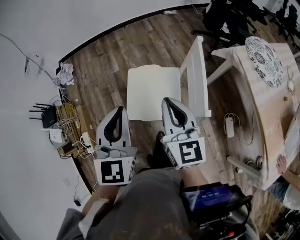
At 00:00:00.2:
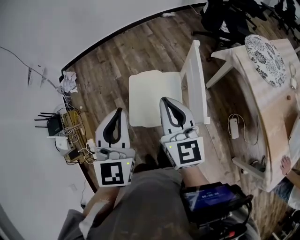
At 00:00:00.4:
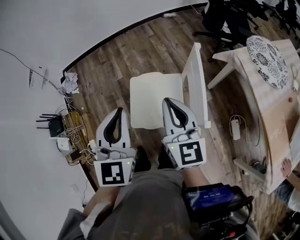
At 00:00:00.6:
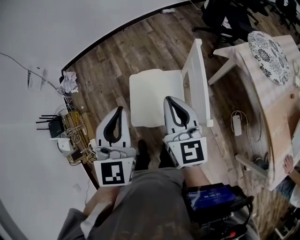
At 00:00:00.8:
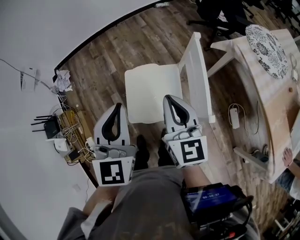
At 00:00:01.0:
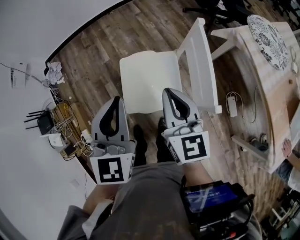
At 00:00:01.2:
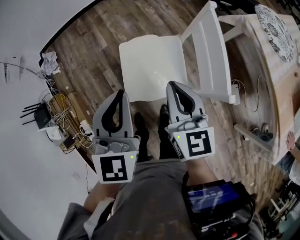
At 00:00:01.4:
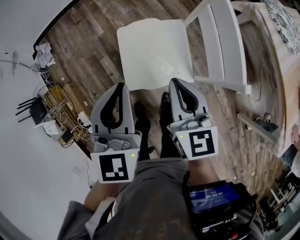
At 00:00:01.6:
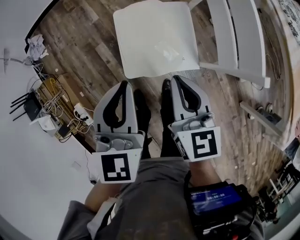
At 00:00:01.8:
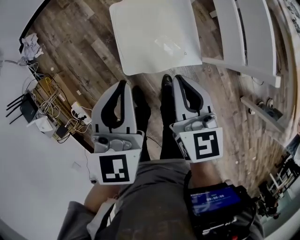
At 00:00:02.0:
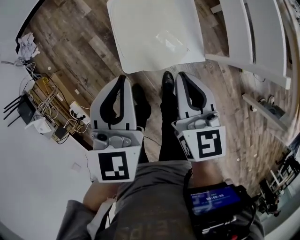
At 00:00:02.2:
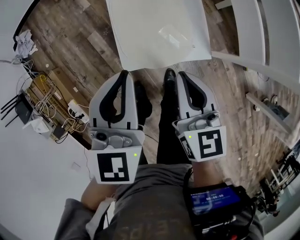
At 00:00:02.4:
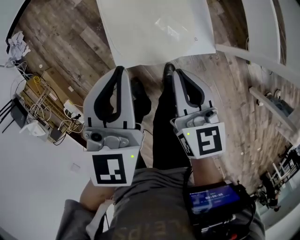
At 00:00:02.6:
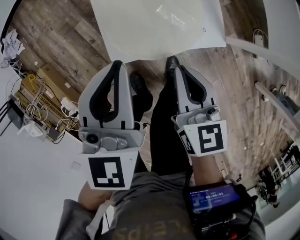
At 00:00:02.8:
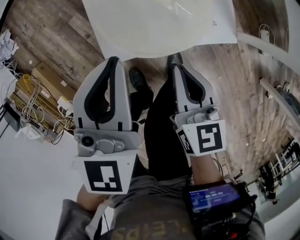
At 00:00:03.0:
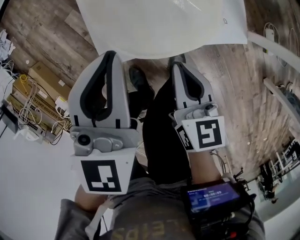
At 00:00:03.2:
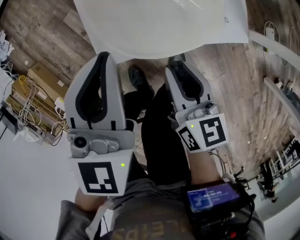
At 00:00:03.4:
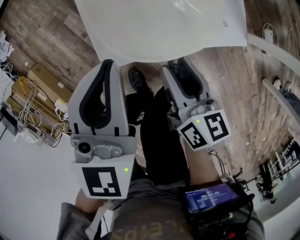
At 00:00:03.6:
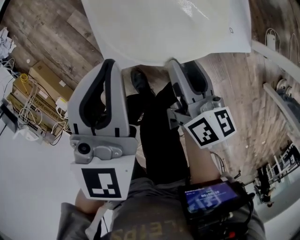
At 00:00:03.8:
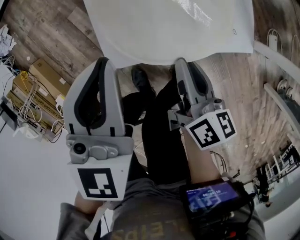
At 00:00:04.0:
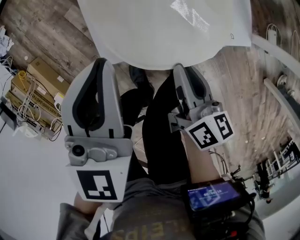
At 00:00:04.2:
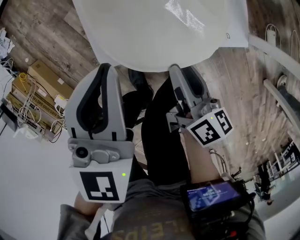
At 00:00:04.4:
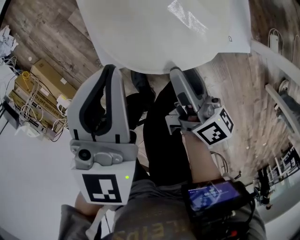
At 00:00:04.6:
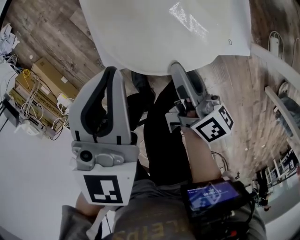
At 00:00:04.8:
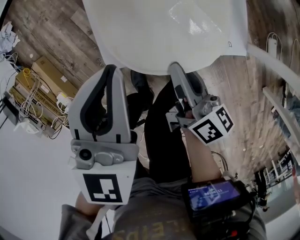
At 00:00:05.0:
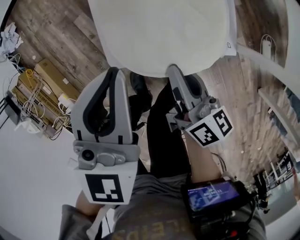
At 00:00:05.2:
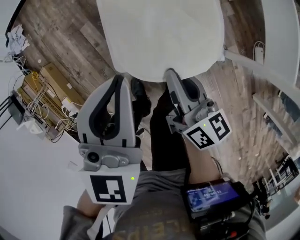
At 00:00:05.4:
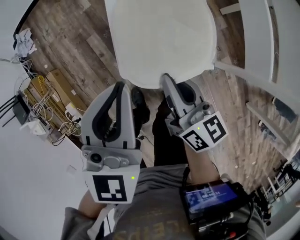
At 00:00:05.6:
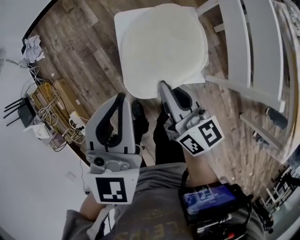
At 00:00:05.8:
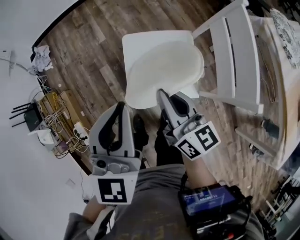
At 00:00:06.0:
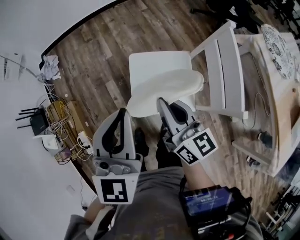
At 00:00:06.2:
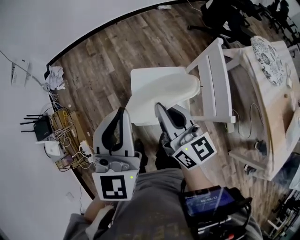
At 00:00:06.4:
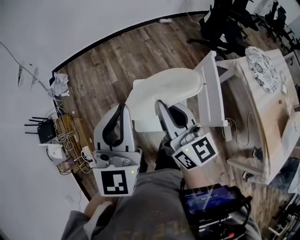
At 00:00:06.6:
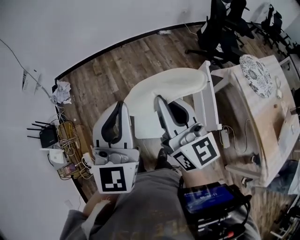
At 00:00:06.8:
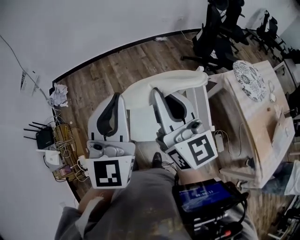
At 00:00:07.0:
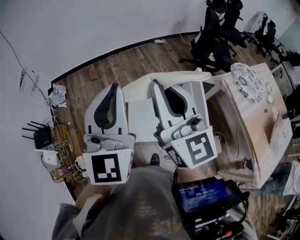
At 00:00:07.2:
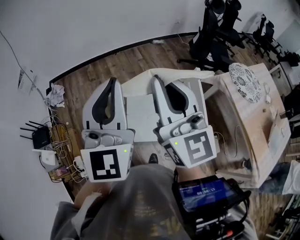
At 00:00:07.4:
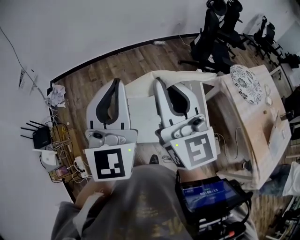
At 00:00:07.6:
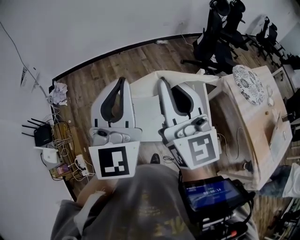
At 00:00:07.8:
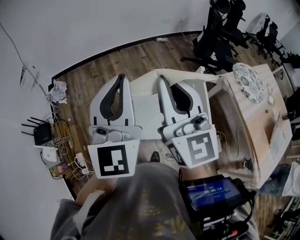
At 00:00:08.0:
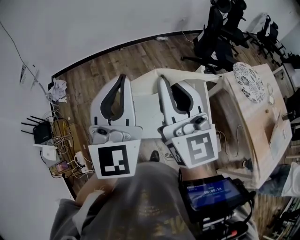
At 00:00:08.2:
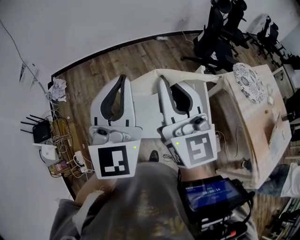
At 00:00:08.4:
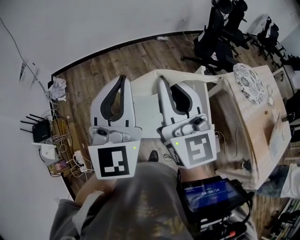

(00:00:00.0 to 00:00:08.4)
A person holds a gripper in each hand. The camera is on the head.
00:00:00.0 - 00:00:01.4: Both grippers move downward, about 10 cm.
00:00:01.4 - 00:00:02.8: The grippers both shift downward by roughly 30 cm.
00:00:02.8 - 00:00:04.2: The right gripper travels downward by some 5 cm, changes its angle by some 40 degrees, and opens its fingers.
00:00:04.2 - 00:00:05.6: The left gripper moves upward, about 20 cm. The right gripper shifts approximately 25 cm upward and forward, swivels about 30 degrees, and closes its fingers.
00:00:05.6 - 00:00:07.0: Both grippers move upward, some 40 cm. The right gripper changes its angle by roughly 40 degrees; the left gripper rotates about 30 degrees.
00:00:07.0 - 00:00:08.4: The grippers stay close to where they were, moving slightly.

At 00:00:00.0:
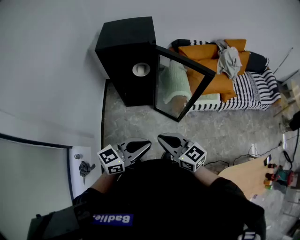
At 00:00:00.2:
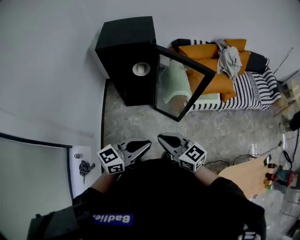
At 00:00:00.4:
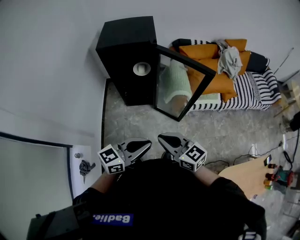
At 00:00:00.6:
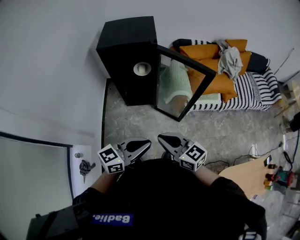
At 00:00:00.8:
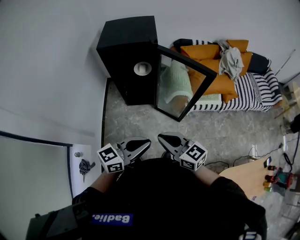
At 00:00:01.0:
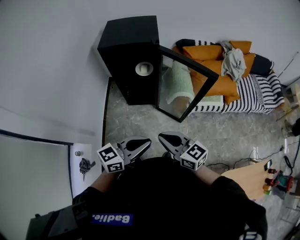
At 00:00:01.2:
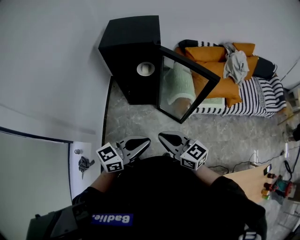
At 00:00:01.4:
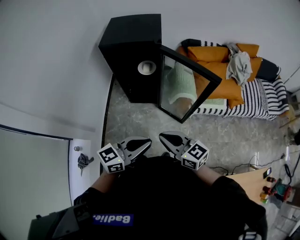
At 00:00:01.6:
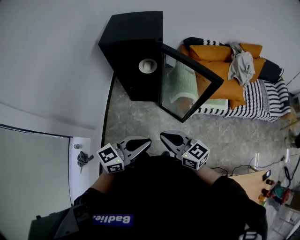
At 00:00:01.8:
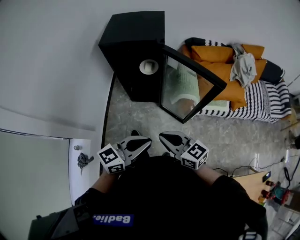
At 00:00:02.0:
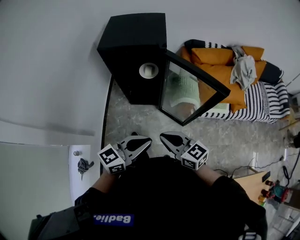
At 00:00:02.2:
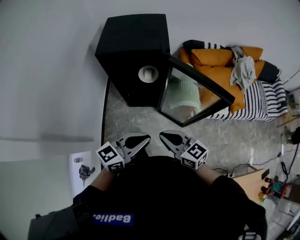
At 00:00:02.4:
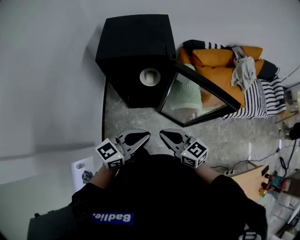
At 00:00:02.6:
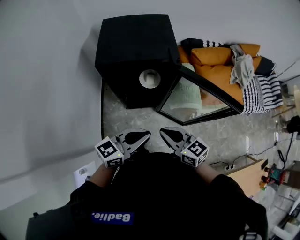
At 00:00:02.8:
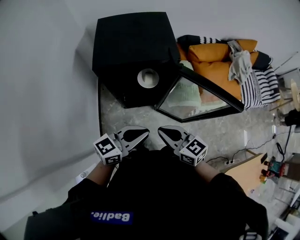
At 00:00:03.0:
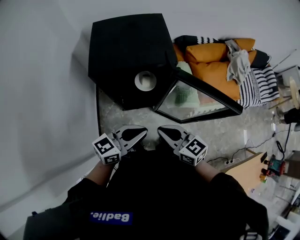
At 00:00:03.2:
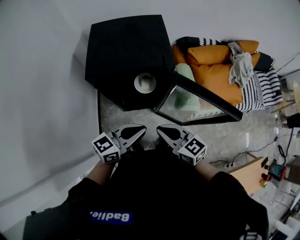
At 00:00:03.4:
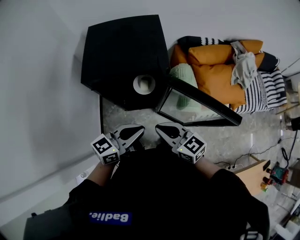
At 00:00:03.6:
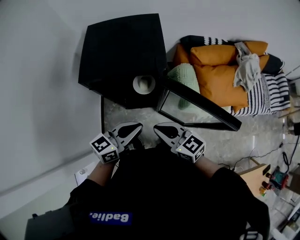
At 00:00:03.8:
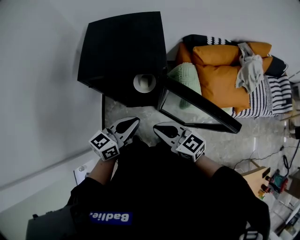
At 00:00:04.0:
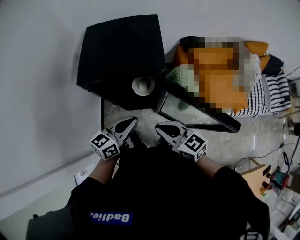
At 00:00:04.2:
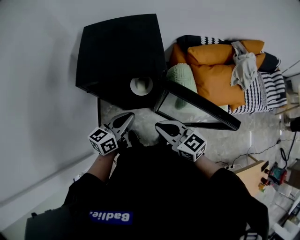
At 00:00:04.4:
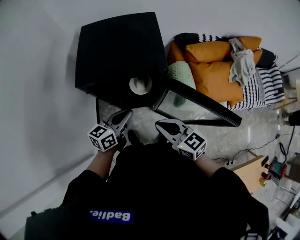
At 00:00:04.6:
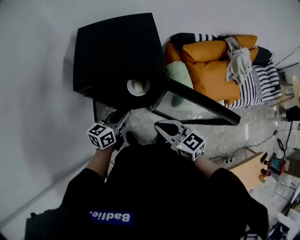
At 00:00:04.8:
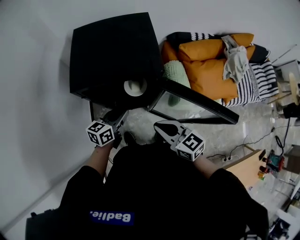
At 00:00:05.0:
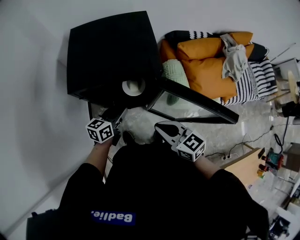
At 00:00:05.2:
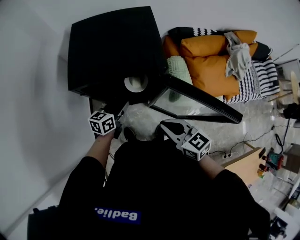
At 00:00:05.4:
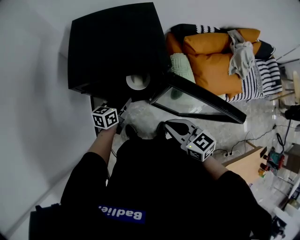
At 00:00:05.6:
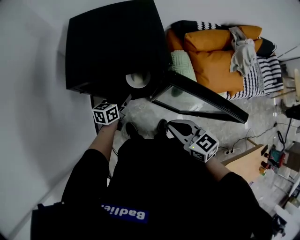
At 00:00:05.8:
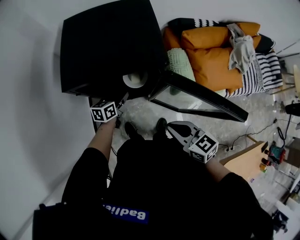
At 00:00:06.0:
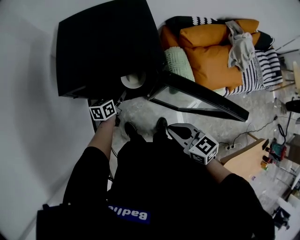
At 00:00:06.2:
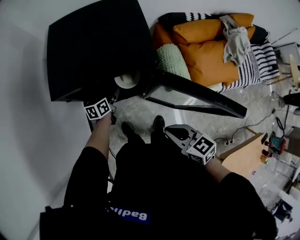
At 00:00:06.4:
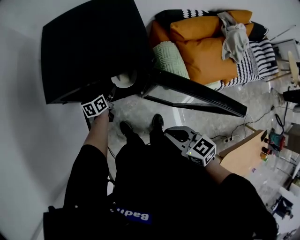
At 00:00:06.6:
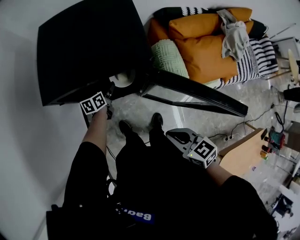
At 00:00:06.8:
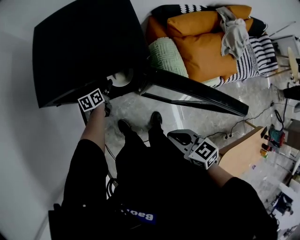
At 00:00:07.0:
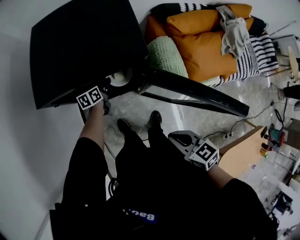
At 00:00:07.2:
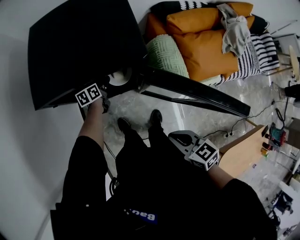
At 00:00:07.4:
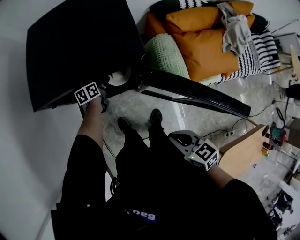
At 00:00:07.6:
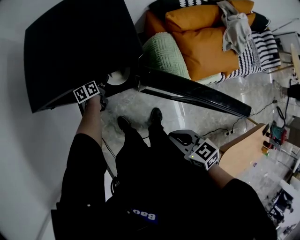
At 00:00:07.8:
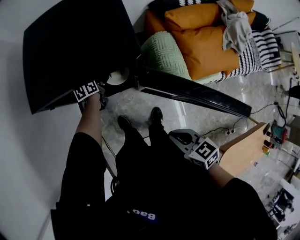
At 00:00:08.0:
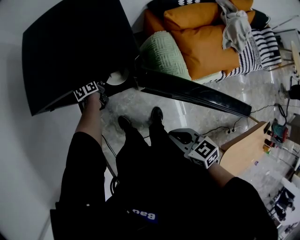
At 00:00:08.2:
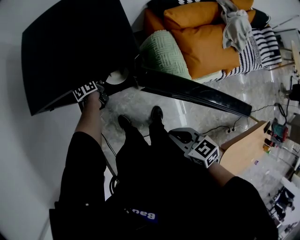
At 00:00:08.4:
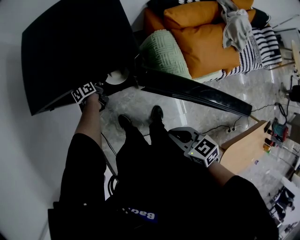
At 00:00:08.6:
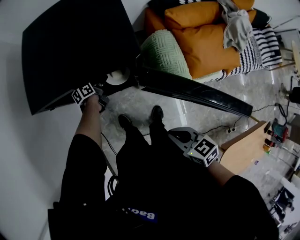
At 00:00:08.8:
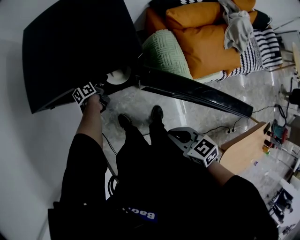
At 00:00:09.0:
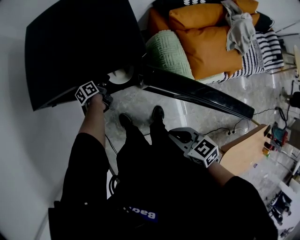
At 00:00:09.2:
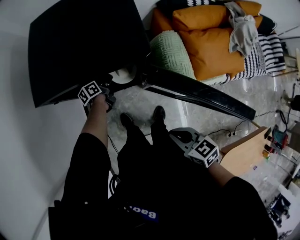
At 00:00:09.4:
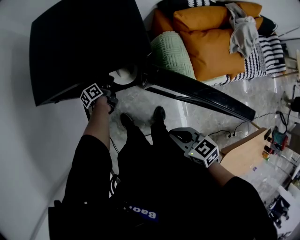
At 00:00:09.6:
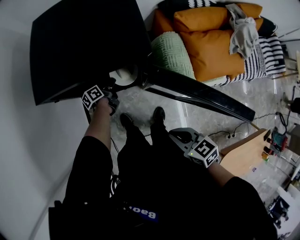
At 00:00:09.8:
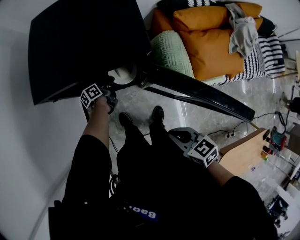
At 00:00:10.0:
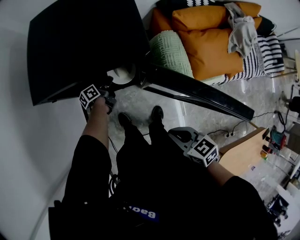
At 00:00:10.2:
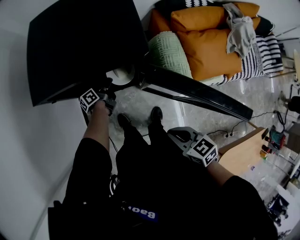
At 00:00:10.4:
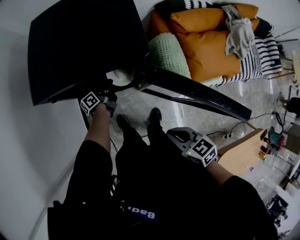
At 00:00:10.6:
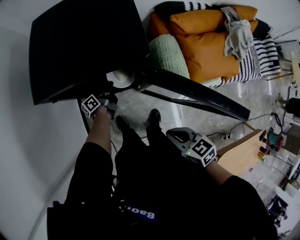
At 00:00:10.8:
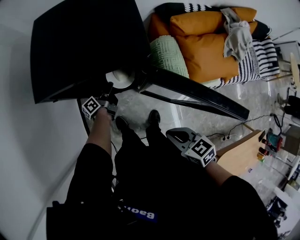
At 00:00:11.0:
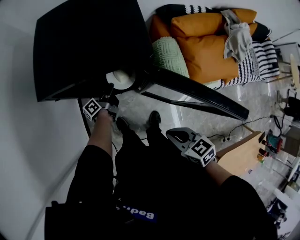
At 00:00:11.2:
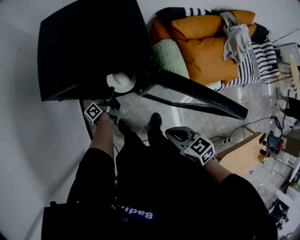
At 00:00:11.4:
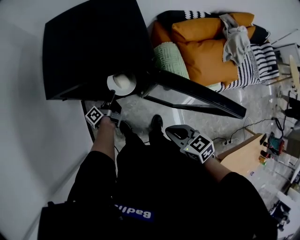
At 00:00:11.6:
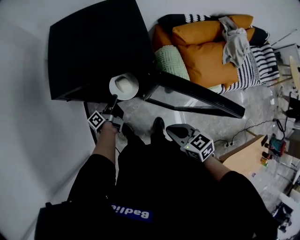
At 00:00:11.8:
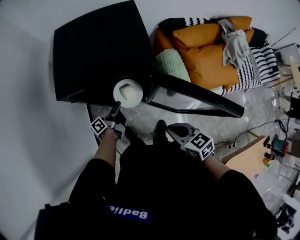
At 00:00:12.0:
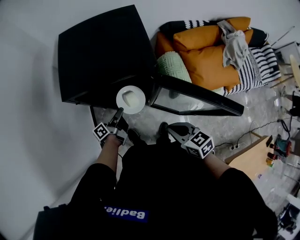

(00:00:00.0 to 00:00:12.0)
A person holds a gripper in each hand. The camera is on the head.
00:00:00.0 - 00:00:01.6: The right gripper changes place by approximately 5 cm. Meanwhile the left gripper changes place by roughly 5 cm.
00:00:01.6 - 00:00:03.0: The two grippers go roughly 30 cm forward and to the left.
00:00:03.0 - 00:00:04.4: The left gripper shifts some 15 cm forward and downward, and turns by about 20 degrees, while the right gripper shifts roughly 5 cm forward.
00:00:04.4 - 00:00:06.0: The right gripper goes approximately 5 cm downward; the left gripper moves downward and forward, some 20 cm, and opens its fingers.
00:00:06.0 - 00:00:07.6: The right gripper moves downward and backward, roughly 10 cm, while the left gripper shifts about 15 cm downward and forward.
00:00:07.6 - 00:00:09.0: The left gripper rotates roughly 20 degrees, and closes its fingers.
00:00:09.0 - 00:00:10.4: The left gripper changes its angle by some 20 degrees.
00:00:10.4 - 00:00:12.0: The left gripper moves upward and backward, some 15 cm. The right gripper changes place by some 5 cm.

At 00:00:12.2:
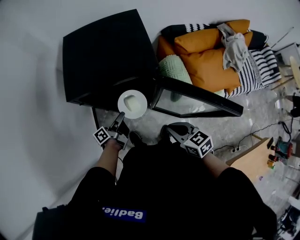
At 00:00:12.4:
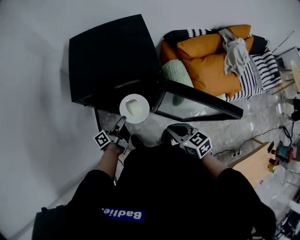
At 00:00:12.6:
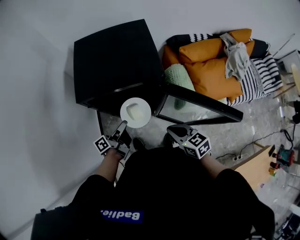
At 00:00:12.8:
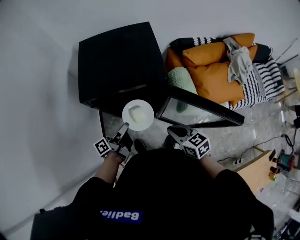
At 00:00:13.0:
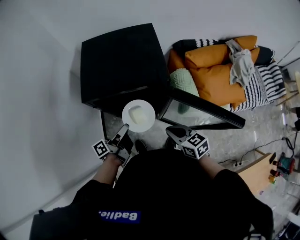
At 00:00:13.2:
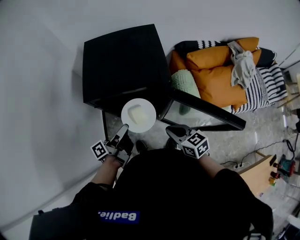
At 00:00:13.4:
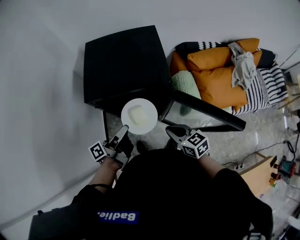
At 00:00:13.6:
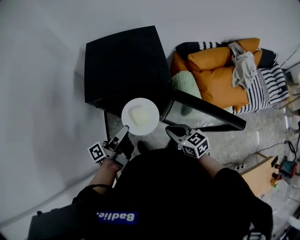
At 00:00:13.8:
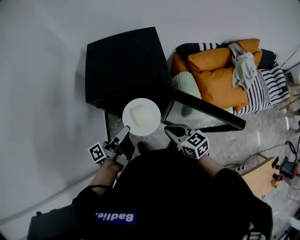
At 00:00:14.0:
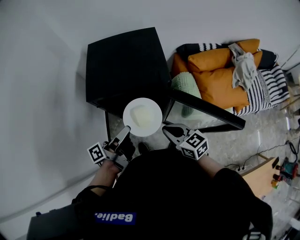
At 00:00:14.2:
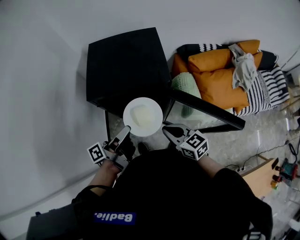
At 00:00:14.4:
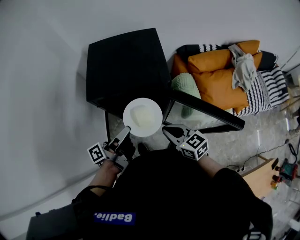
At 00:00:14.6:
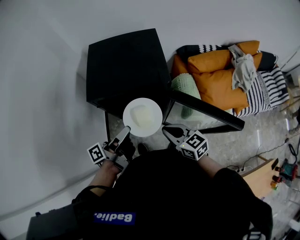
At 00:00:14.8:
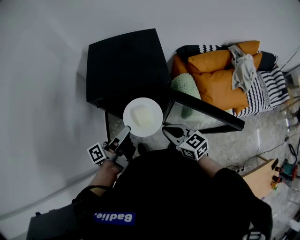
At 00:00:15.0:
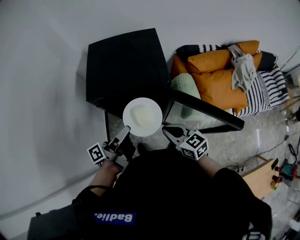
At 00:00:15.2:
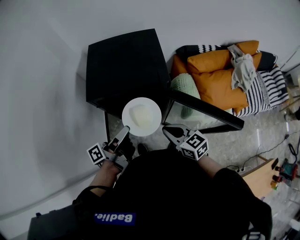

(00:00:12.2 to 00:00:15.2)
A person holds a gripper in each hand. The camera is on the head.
00:00:12.2 - 00:00:13.8: The right gripper ends up roughly 5 cm from where it was. Meanwhile the left gripper heads upward, covering some 20 cm.
00:00:13.8 - 00:00:15.2: The grippers make only small movements.
